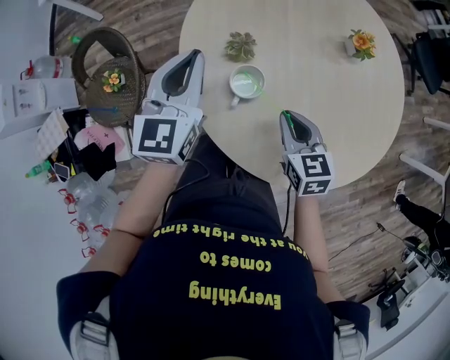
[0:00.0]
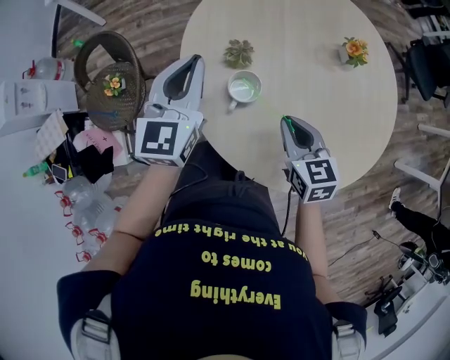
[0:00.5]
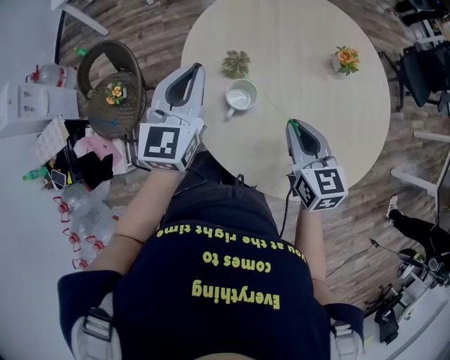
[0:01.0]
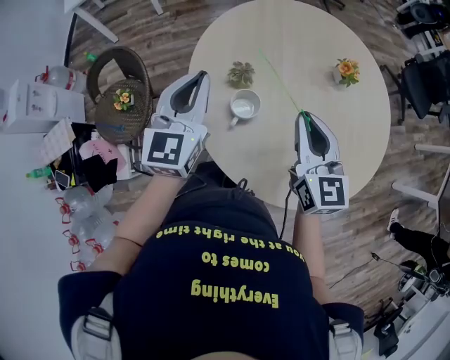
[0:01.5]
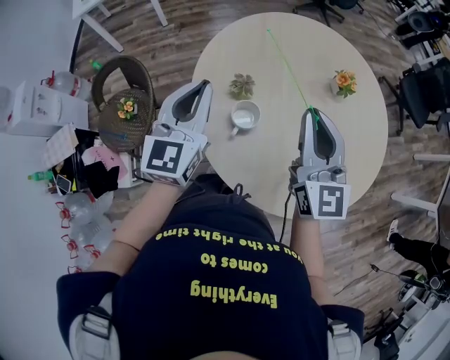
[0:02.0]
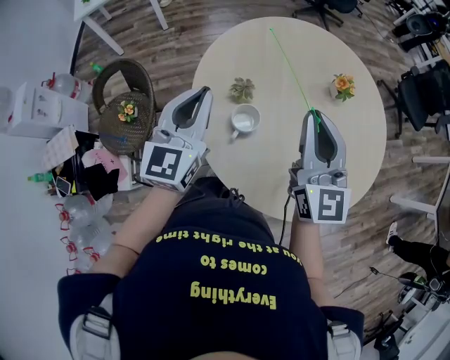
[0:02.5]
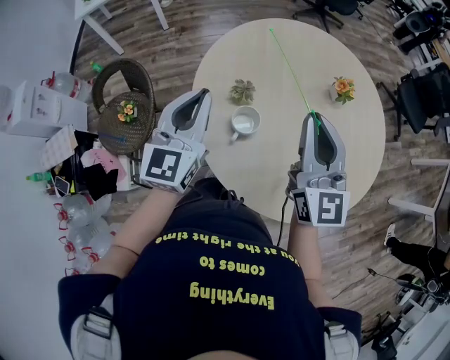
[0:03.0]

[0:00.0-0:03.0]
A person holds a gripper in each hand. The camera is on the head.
0:00.0 to 0:01.5: The left gripper moves approximately 5 cm, while the right gripper travels upward by some 15 cm, and turns by approximately 30 degrees.
0:01.5 to 0:03.0: The right gripper travels upward by some 10 cm.

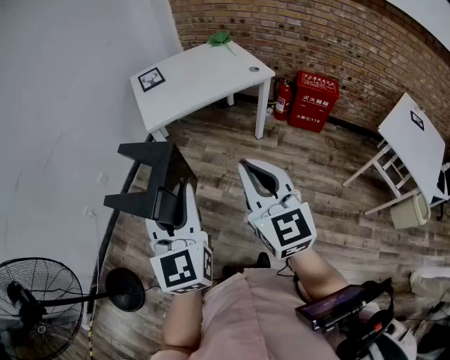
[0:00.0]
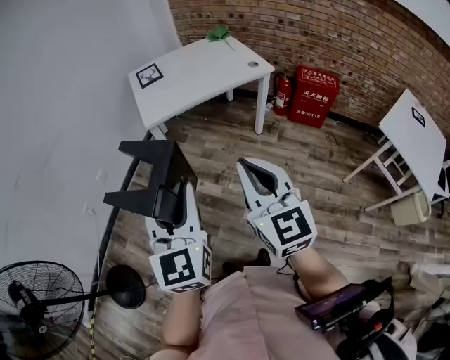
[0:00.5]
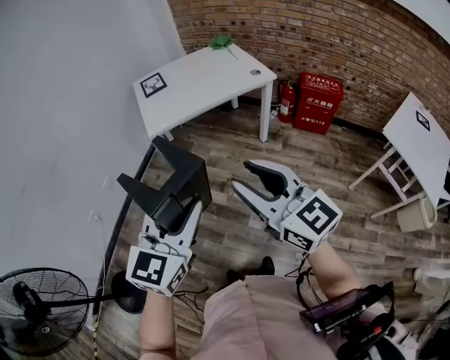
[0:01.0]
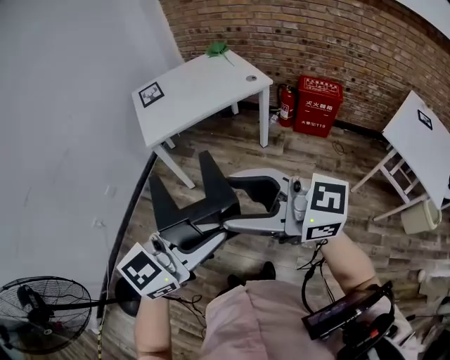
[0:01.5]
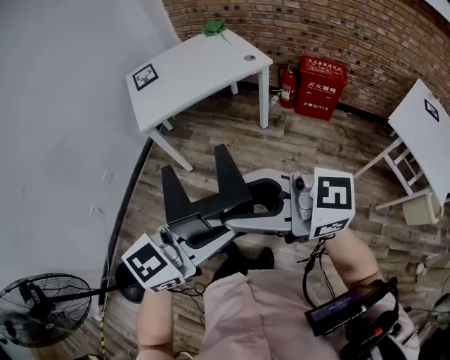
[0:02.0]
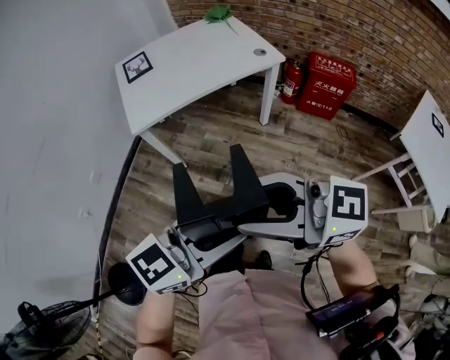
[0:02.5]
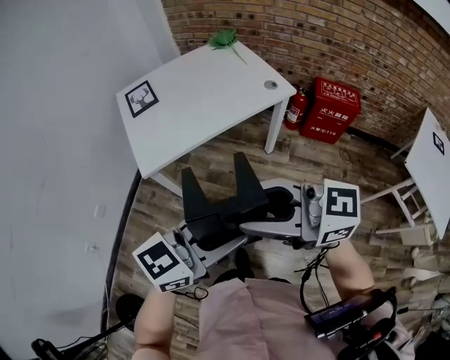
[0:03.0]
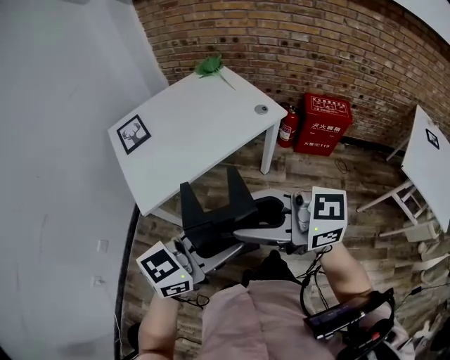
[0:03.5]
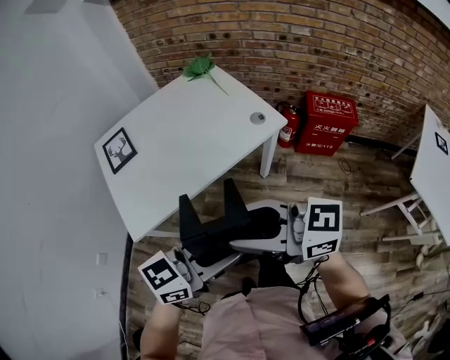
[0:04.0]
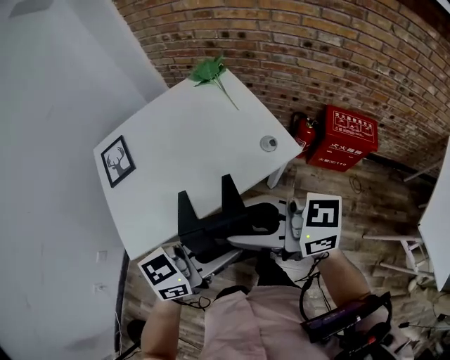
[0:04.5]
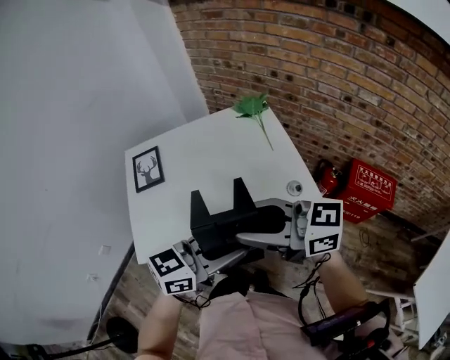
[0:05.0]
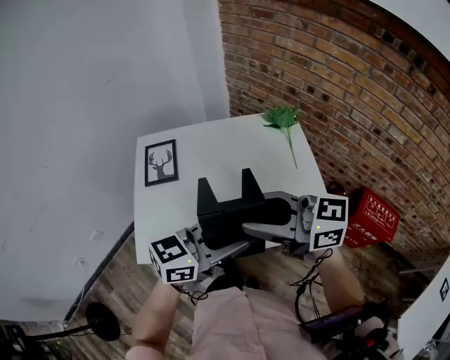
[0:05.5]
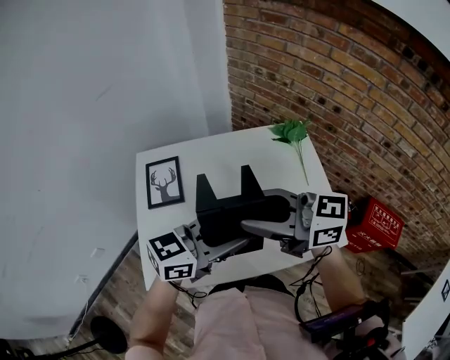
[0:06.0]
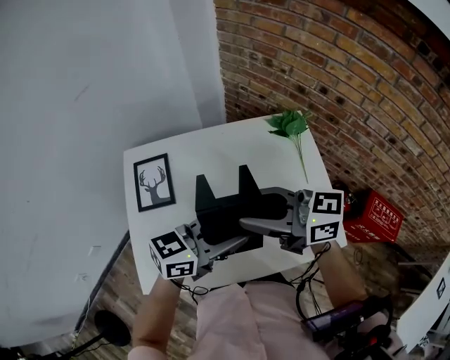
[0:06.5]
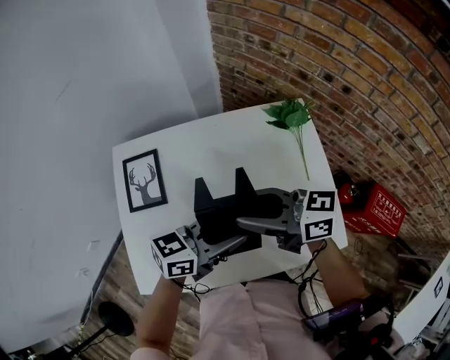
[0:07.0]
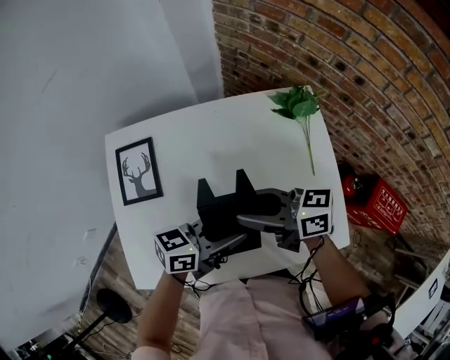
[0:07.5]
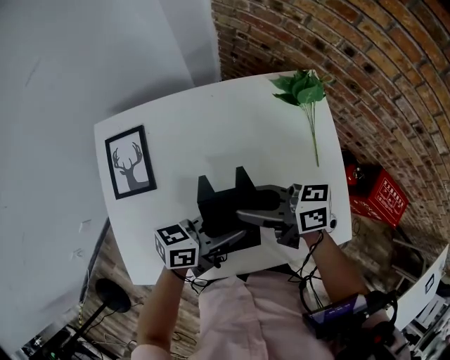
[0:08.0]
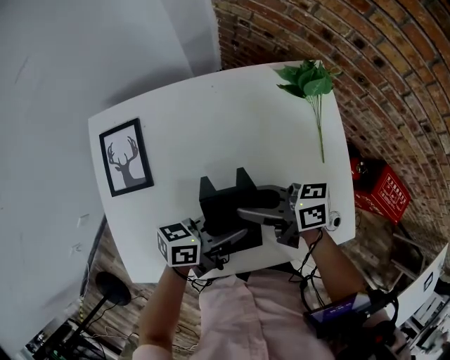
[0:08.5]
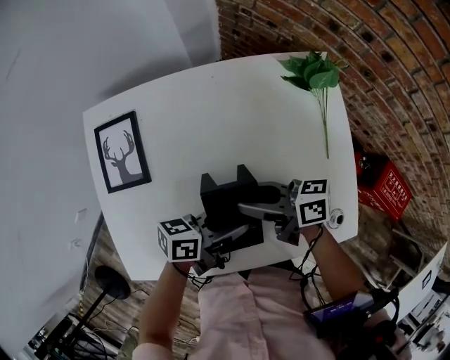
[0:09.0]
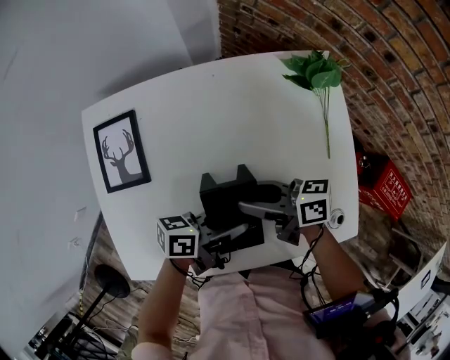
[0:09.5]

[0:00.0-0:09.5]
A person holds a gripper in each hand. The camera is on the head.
0:00.0 to 0:02.0: The right gripper shifts by about 10 cm, rotates about 60 degrees, and opens, while the left gripper ends up some 20 cm from where it was, and swivels some 60 degrees.
0:02.0 to 0:04.0: Both grippers are carried approximately 40 cm.
0:04.0 to 0:05.5: The left gripper moves some 30 cm, and rotates roughly 20 degrees. The right gripper changes place by approximately 30 cm, and swivels approximately 20 degrees.
0:05.5 to 0:07.5: The left gripper shifts by roughly 20 cm, and rotates some 30 degrees. The right gripper changes place by approximately 25 cm, and swivels roughly 30 degrees.
0:07.5 to 0:09.5: The two grippers go some 10 cm downward. The left gripper turns by roughly 30 degrees.

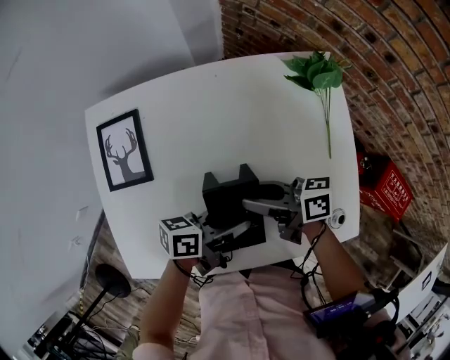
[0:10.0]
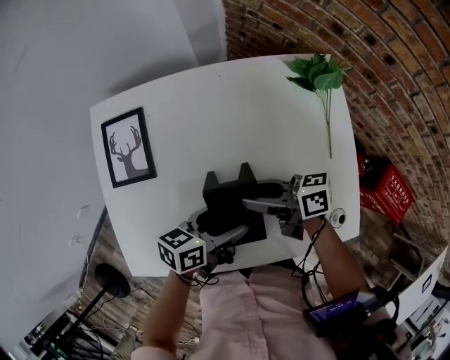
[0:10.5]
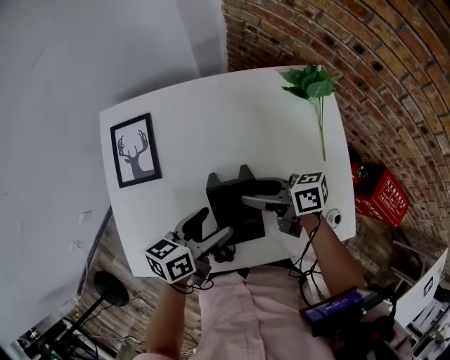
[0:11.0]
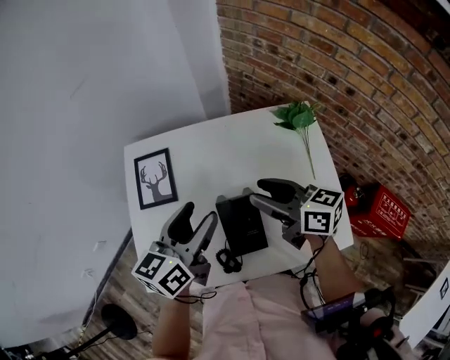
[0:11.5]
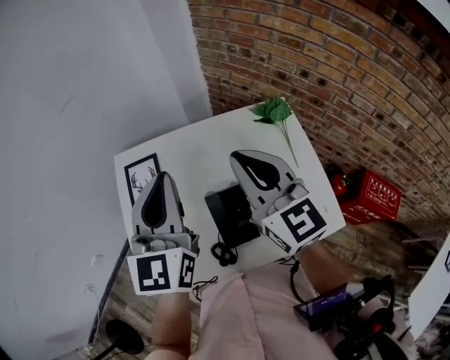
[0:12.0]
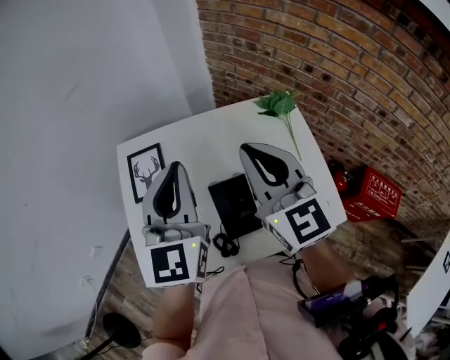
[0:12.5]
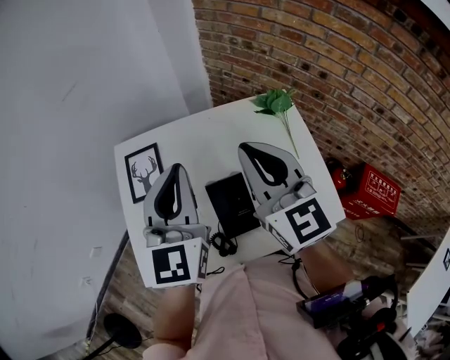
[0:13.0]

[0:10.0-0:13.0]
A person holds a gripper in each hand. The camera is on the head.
0:10.0 to 0:11.5: The two grippers go approximately 15 cm upward. The left gripper rotates roughly 50 degrees. The right gripper turns by about 30 degrees.
0:11.5 to 0:13.0: Both grippers move upward, approximately 15 cm. The left gripper rotates roughly 40 degrees, and closes its fingers. Meanwhile the right gripper changes its angle by approximately 50 degrees, and closes its fingers.

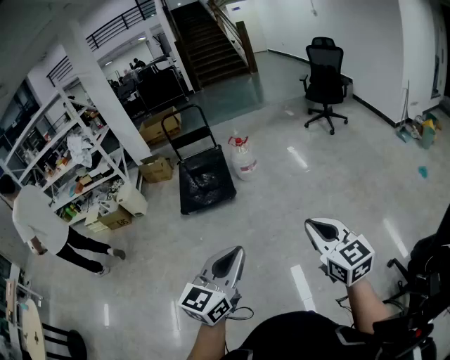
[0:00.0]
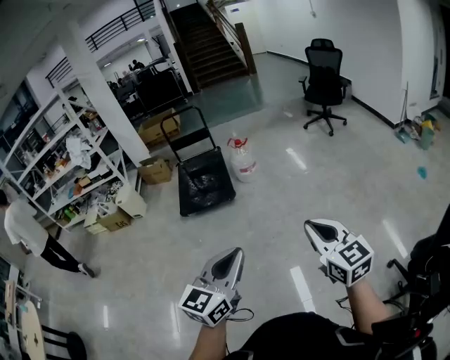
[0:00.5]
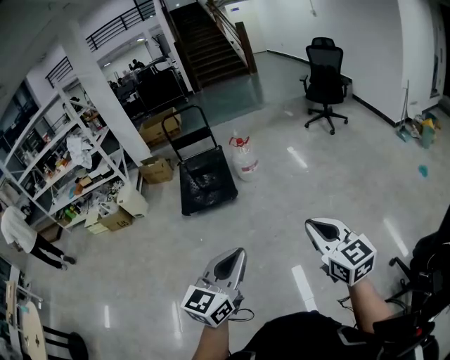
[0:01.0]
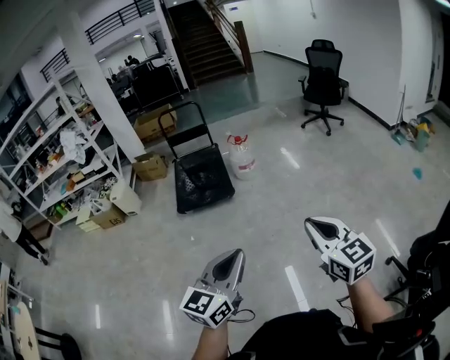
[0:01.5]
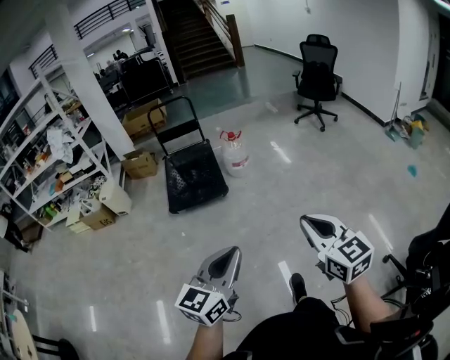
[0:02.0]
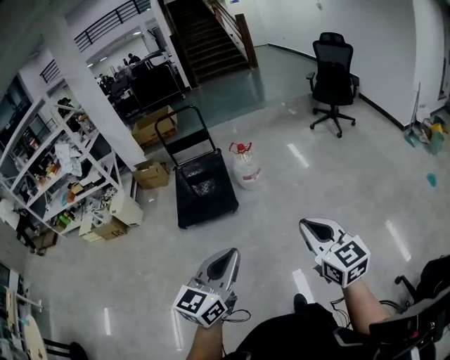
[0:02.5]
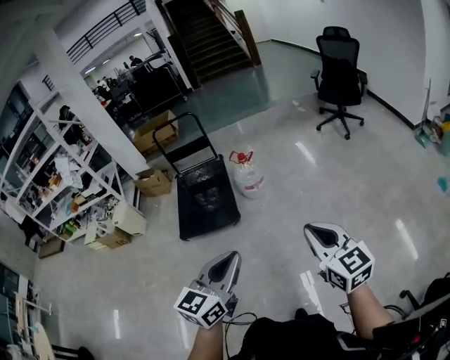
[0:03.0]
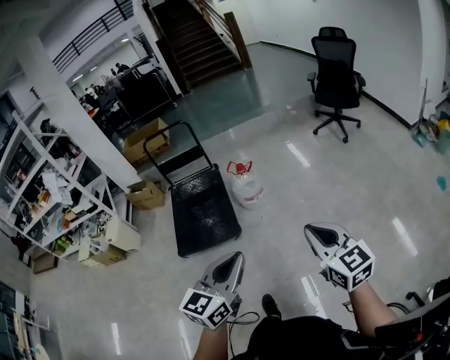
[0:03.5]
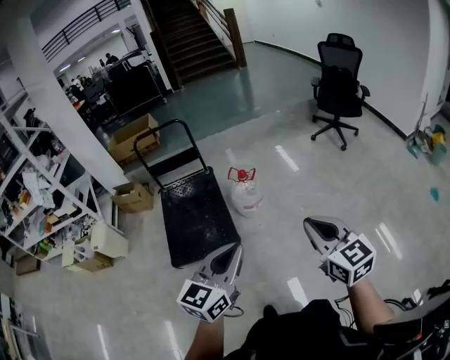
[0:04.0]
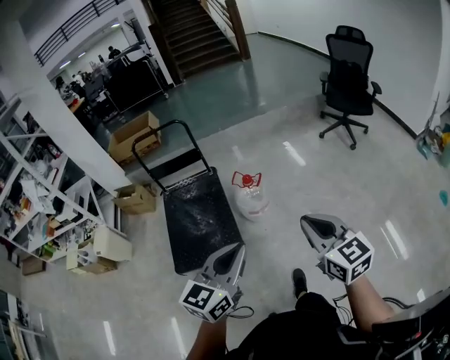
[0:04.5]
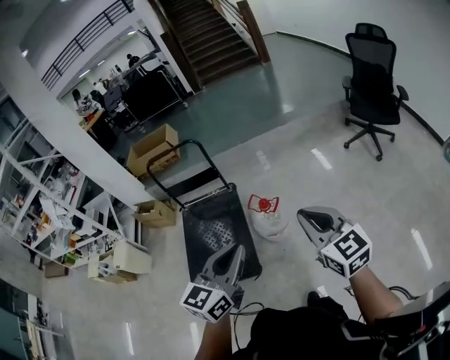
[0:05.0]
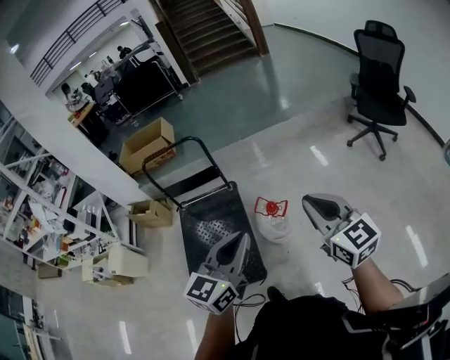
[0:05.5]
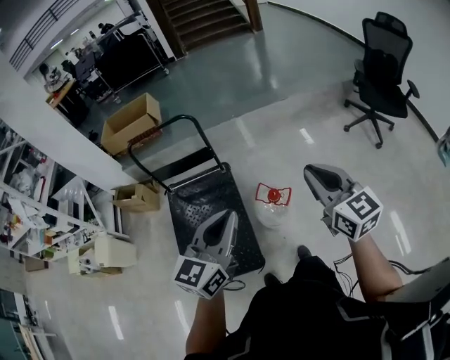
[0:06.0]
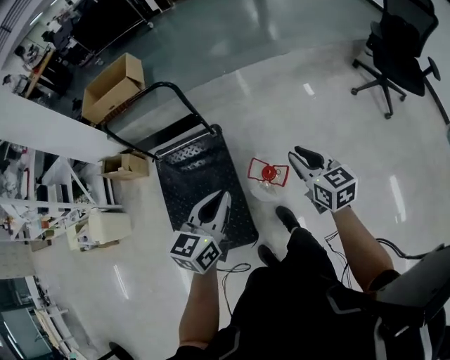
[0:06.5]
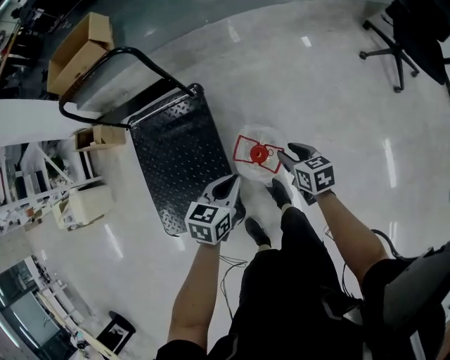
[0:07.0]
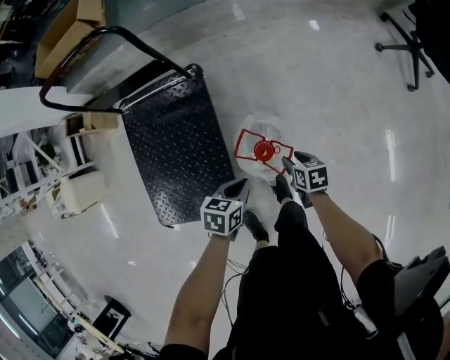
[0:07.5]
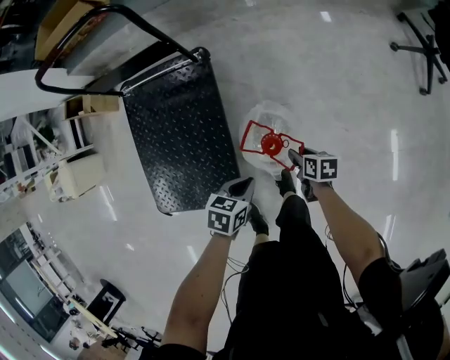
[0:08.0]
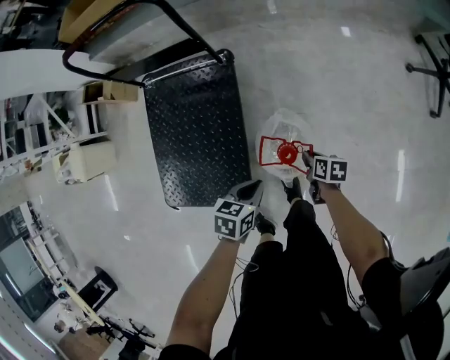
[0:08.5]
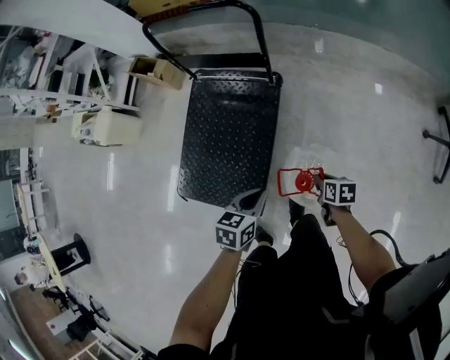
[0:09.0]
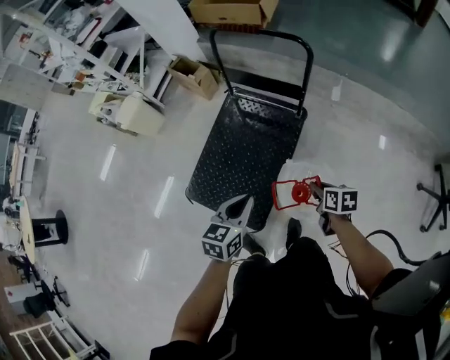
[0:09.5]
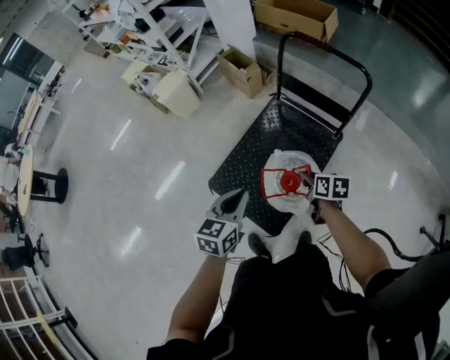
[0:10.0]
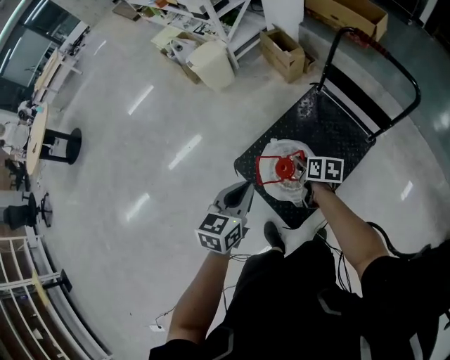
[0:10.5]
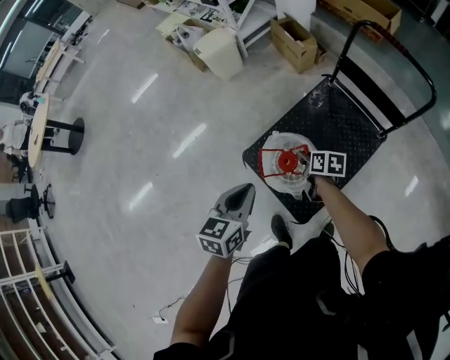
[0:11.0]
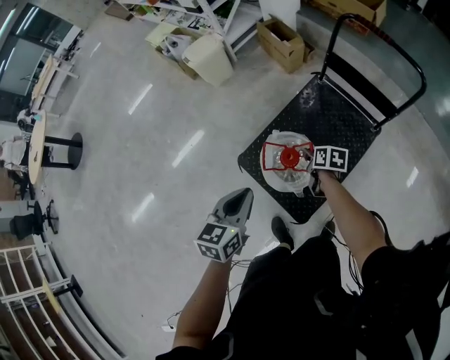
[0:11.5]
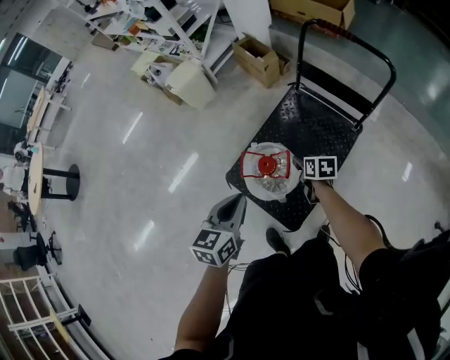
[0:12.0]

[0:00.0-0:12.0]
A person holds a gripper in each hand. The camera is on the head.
0:00.0 to 0:02.0: The two grippers go approximately 10 cm to the left and forward.
0:02.0 to 0:04.0: The two grippers travel together, forward, about 60 cm.
0:04.0 to 0:06.0: Both grippers are carried forward, roughly 50 cm.
0:06.0 to 0:08.0: Both grippers travel together downward, approximately 60 cm. The left gripper angles its fingers downward, by roughly 50 degrees, while the right gripper points its fingers about 50 degrees further downward, and opens.
0:08.0 to 0:10.0: The pair of grippers is taken roughly 40 cm. The right gripper changes its angle by roughly 40 degrees, and closes. The left gripper swivels approximately 60 degrees.
0:10.0 to 0:12.0: The right gripper moves to the left, downward and forward, roughly 15 cm, and opens up. The left gripper shifts about 10 cm to the left.
